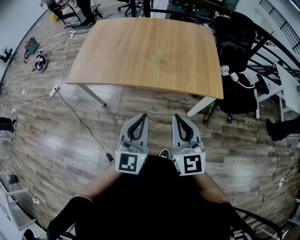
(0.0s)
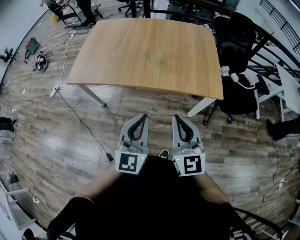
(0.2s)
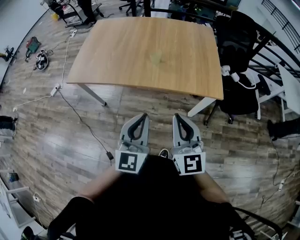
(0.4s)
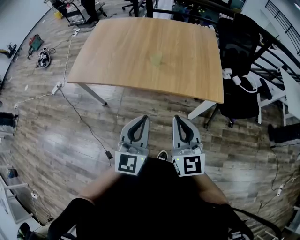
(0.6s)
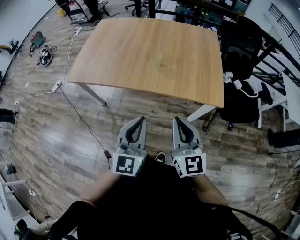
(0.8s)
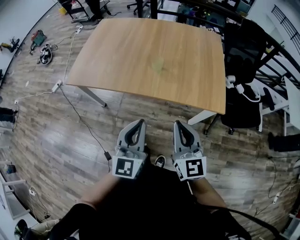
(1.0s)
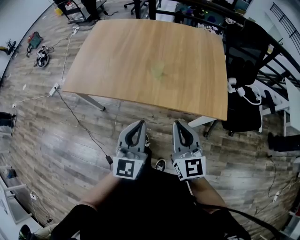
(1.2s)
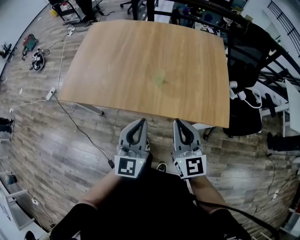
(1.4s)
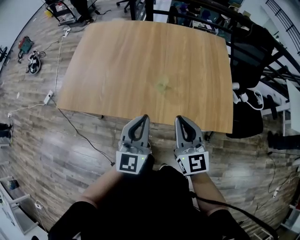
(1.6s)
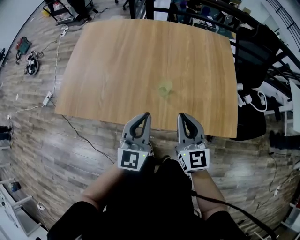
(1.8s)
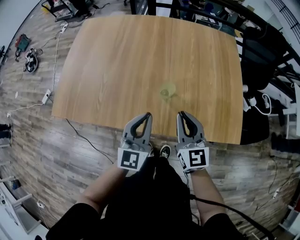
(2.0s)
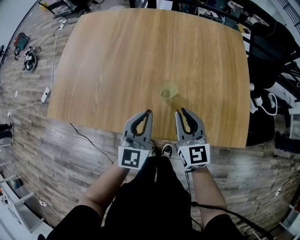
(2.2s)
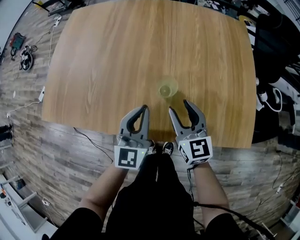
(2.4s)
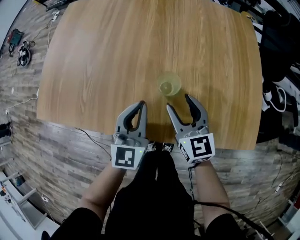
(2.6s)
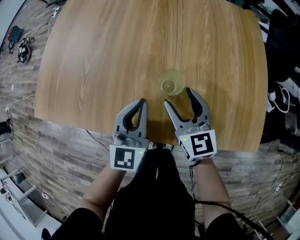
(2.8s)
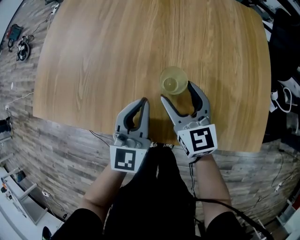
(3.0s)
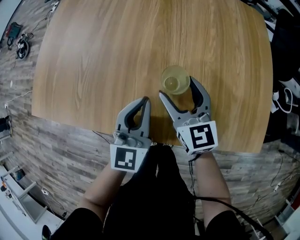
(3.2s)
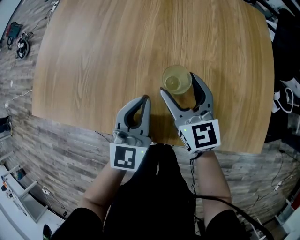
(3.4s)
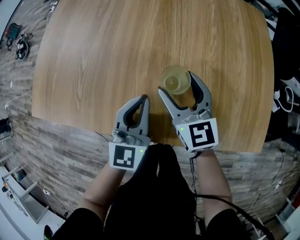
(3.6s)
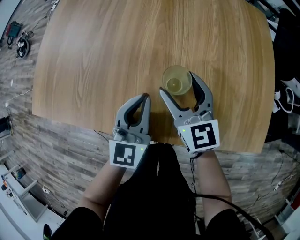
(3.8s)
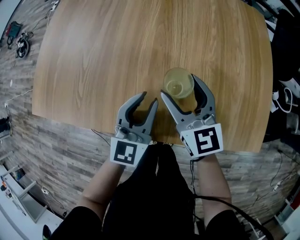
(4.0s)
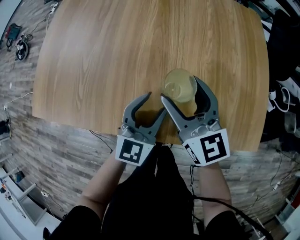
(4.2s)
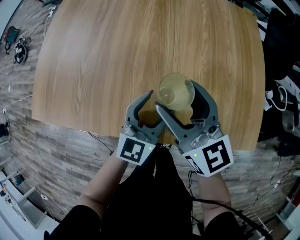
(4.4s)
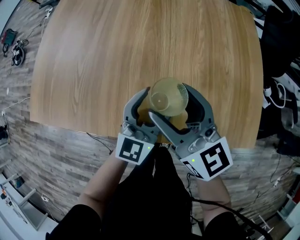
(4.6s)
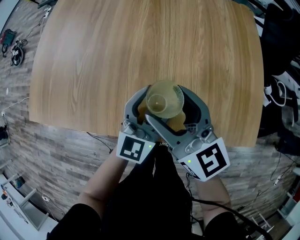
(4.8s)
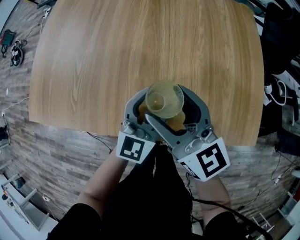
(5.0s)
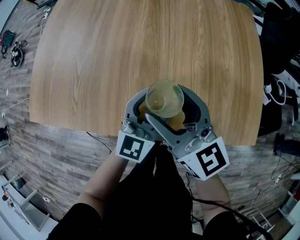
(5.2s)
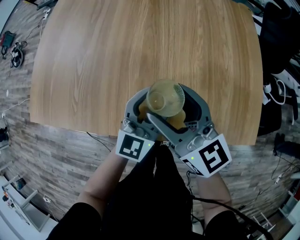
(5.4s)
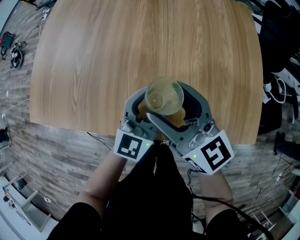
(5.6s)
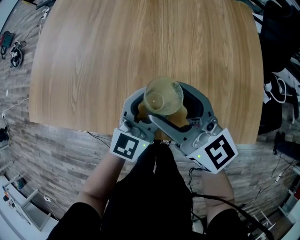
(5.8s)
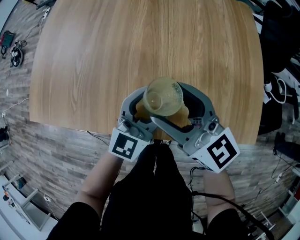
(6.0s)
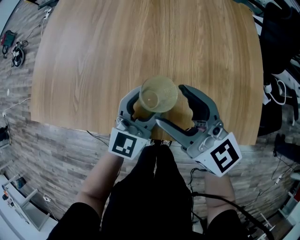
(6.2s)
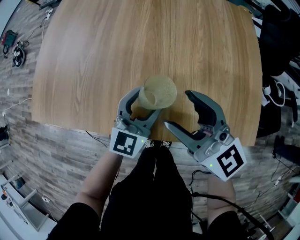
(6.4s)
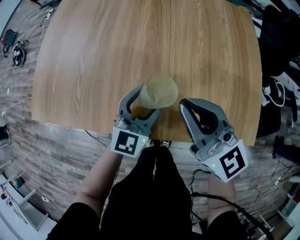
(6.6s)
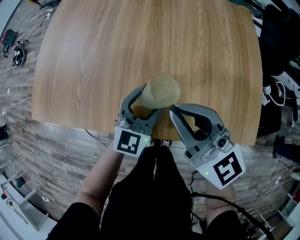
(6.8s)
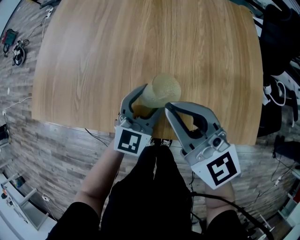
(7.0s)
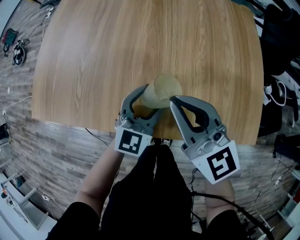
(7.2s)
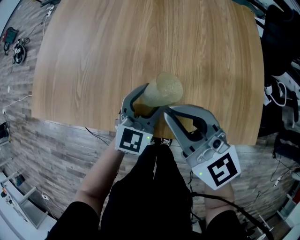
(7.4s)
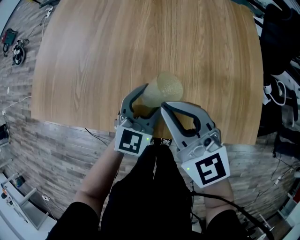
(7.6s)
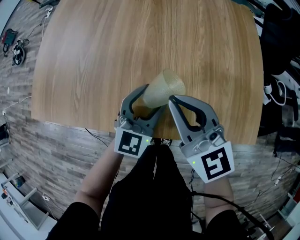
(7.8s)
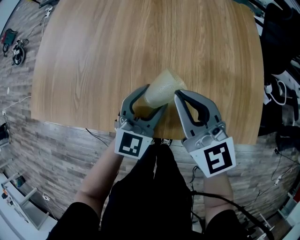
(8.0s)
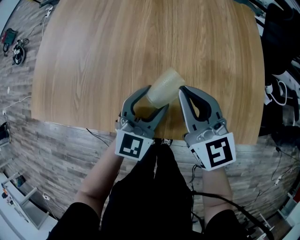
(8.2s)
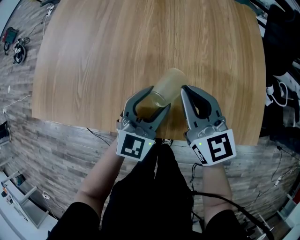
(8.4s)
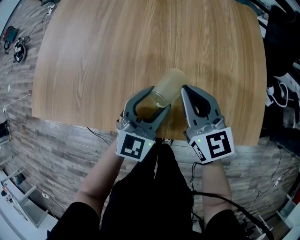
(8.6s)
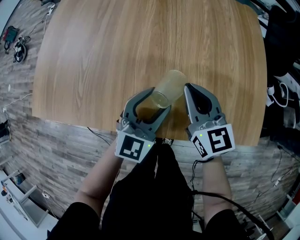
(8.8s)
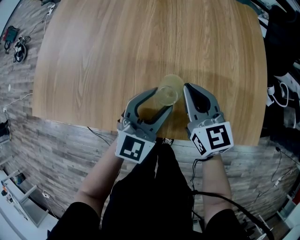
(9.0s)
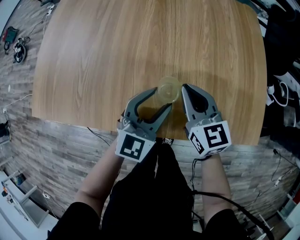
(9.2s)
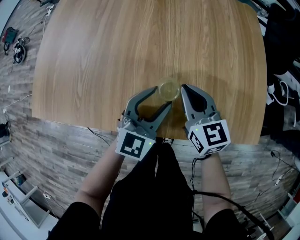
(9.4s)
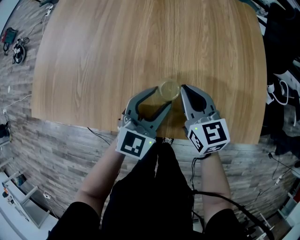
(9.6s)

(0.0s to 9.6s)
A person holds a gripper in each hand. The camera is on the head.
0.0s - 1.6s: The grippers both shift forward by approximately 25 cm.
1.6s - 3.2s: Both grippers move downward and forward, about 30 cm. The right gripper opens up.
3.2s - 4.8s: The left gripper shifts approximately 5 cm to the right, turns by roughly 20 degrees, and opens up. Meanwhile the right gripper is displaced upward by approximately 10 cm.
4.8s - 6.4s: The grippers stay close to where they were, moving slightly.
6.4s - 8.0s: The right gripper closes its fingers.
8.0s - 9.6s: The right gripper shifts some 10 cm downward.

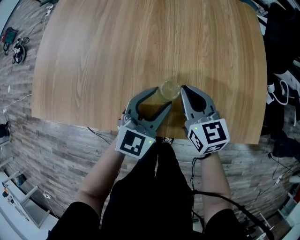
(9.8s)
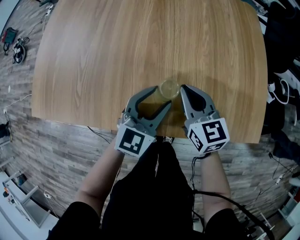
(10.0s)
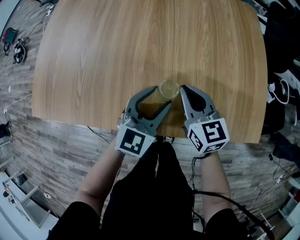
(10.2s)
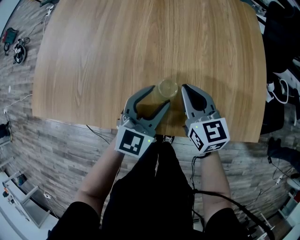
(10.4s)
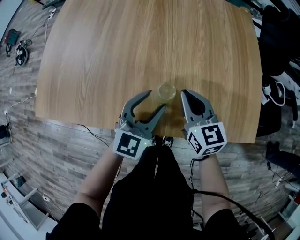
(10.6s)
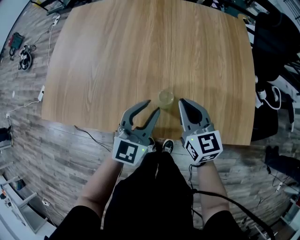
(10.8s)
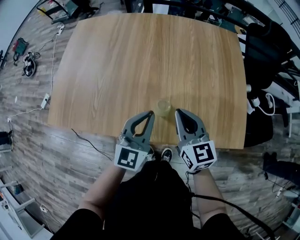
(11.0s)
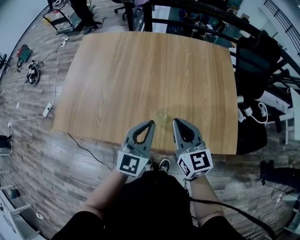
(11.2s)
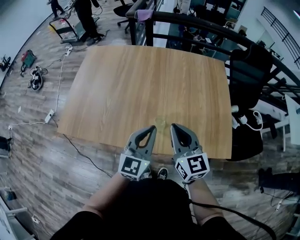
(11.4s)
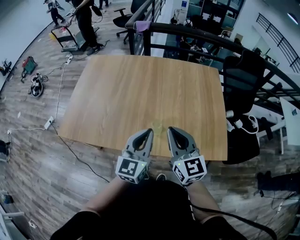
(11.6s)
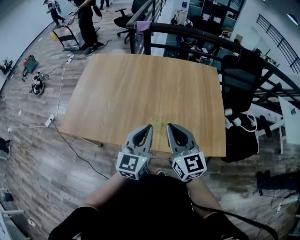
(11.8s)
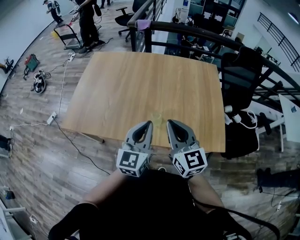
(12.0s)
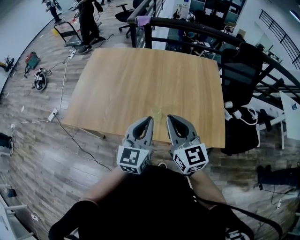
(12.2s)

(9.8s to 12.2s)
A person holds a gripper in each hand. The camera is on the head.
9.8s - 11.0s: The two grippers go some 10 cm upward. The left gripper closes up.
11.0s - 12.2s: The two grippers go approximately 20 cm upward and backward.

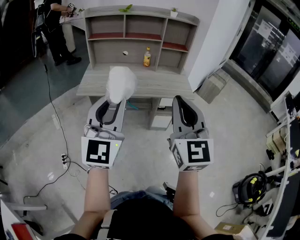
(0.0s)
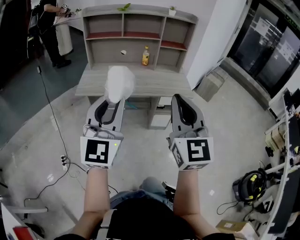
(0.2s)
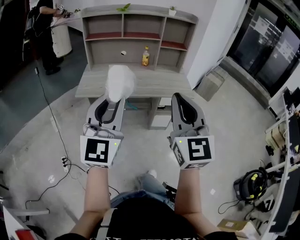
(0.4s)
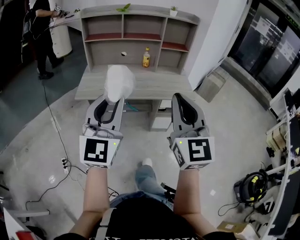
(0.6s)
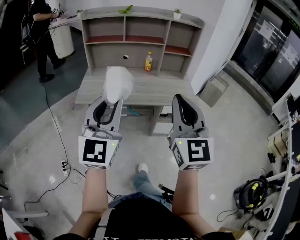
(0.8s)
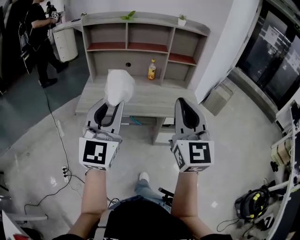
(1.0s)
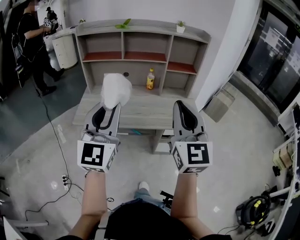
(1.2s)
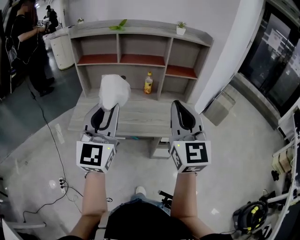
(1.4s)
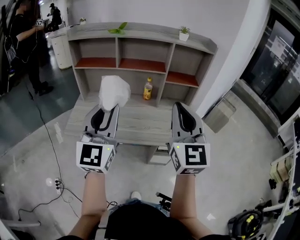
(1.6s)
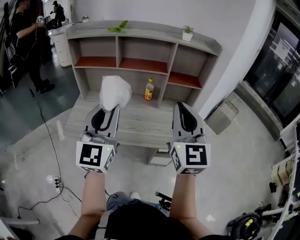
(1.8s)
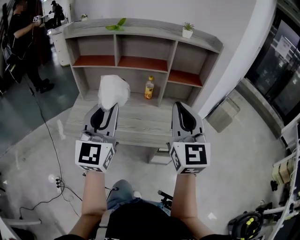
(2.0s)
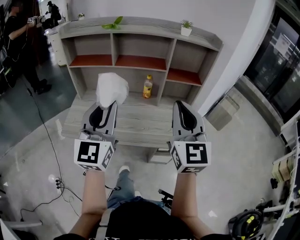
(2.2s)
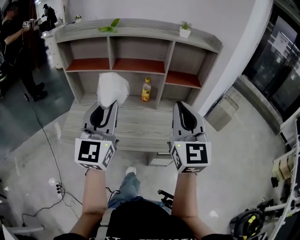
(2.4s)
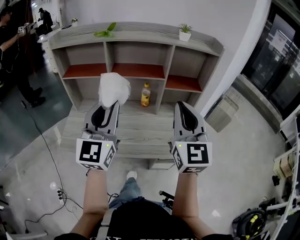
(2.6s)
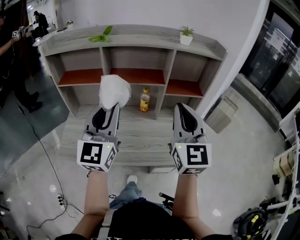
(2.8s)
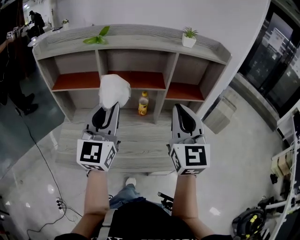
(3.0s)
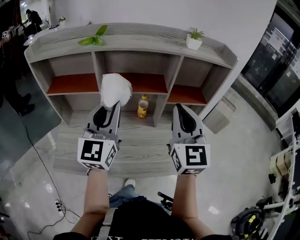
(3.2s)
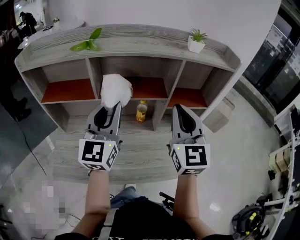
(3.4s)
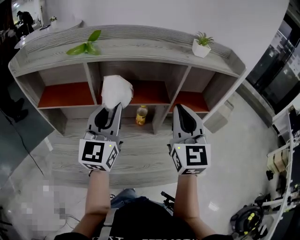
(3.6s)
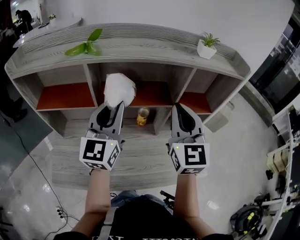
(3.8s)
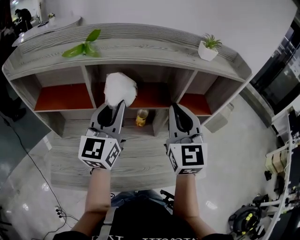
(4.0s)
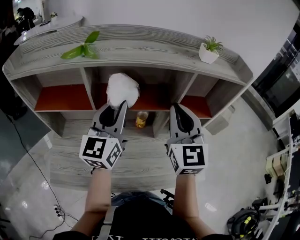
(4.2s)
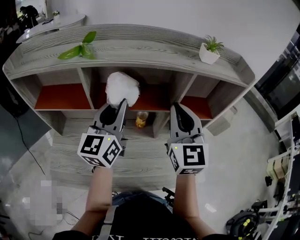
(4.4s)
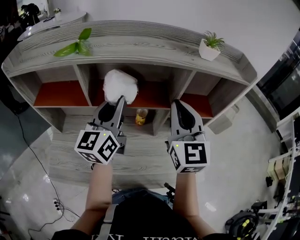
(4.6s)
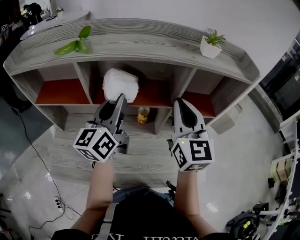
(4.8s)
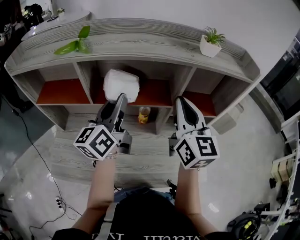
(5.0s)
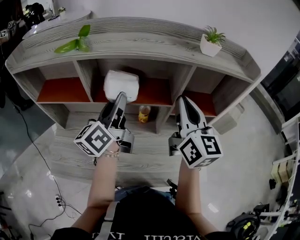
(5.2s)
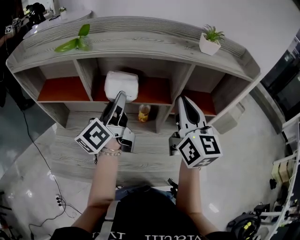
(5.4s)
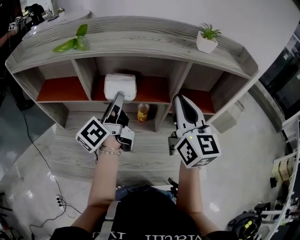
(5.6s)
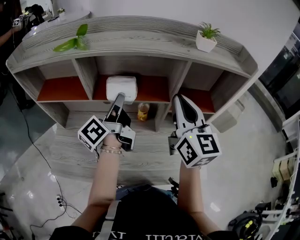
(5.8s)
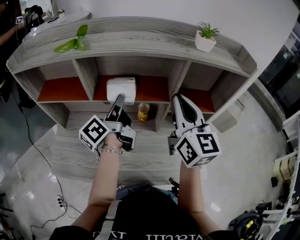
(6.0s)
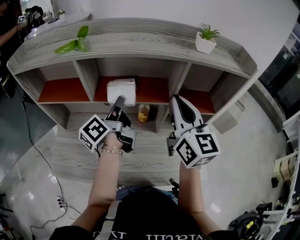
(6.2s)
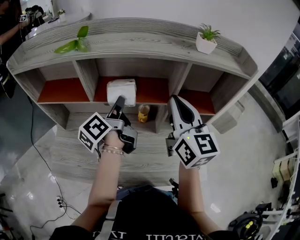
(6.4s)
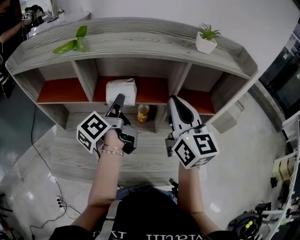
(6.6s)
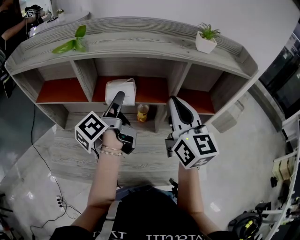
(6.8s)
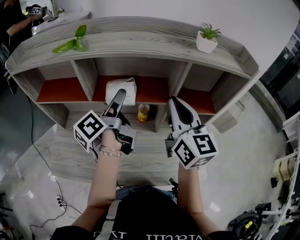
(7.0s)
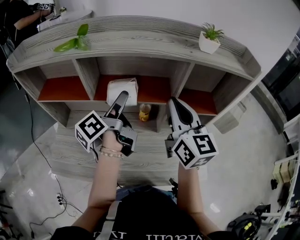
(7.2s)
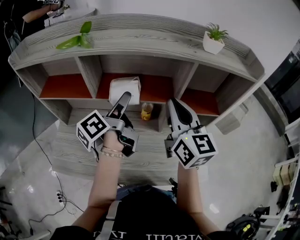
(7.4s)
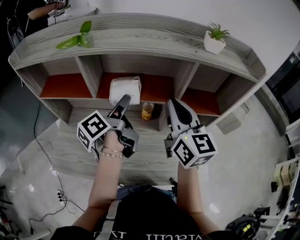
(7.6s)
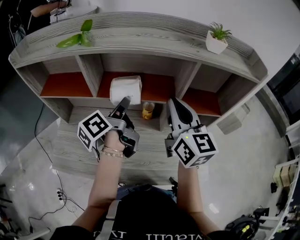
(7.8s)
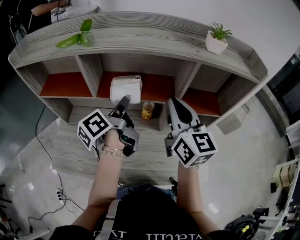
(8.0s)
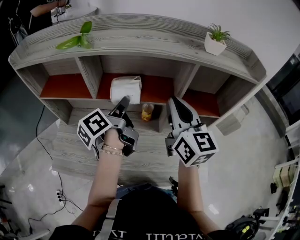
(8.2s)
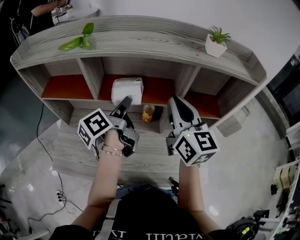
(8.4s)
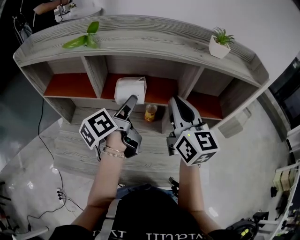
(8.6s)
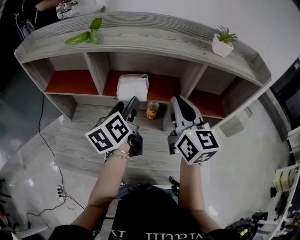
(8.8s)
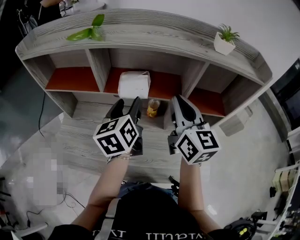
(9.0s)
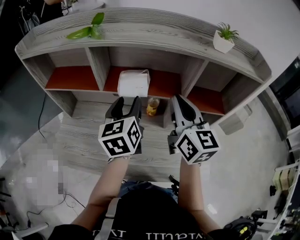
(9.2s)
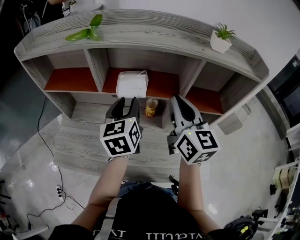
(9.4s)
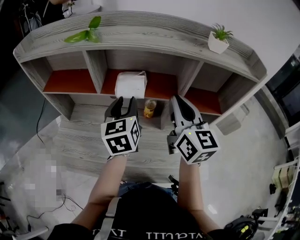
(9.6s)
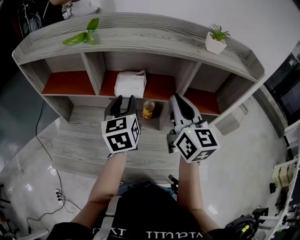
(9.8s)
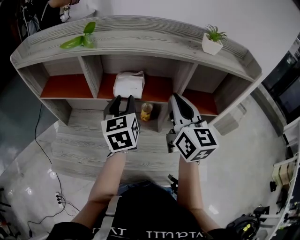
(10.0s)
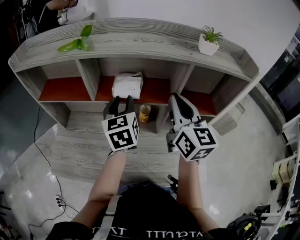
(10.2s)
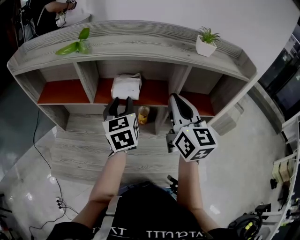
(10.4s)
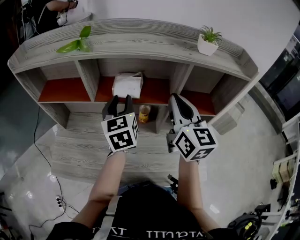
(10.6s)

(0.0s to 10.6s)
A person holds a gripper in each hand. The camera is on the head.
0.0s - 1.6s: Both grippers move forward, roughly 35 cm.
1.6s - 3.0s: Both grippers travel together forward, about 20 cm.
3.0s - 4.6s: Both grippers travel together forward, some 20 cm. The left gripper changes its angle by roughly 30 degrees.
4.6s - 6.0s: The left gripper moves downward, approximately 5 cm, and twists some 50 degrees counterclockwise, seen from behind. The right gripper turns by some 20 degrees.
6.0s - 7.6s: The left gripper opens up.
7.6s - 9.0s: The left gripper rolls clockwise, seen from behind, by some 50 degrees, and closes, then opens again.
9.0s - 10.6s: The grippers make only small movements.

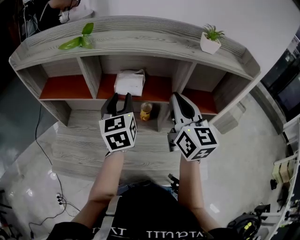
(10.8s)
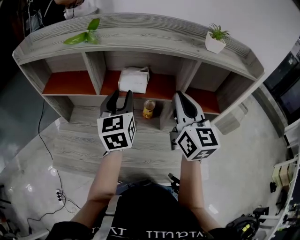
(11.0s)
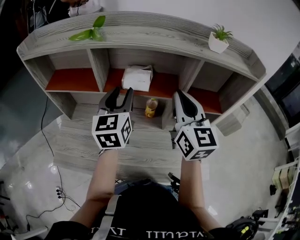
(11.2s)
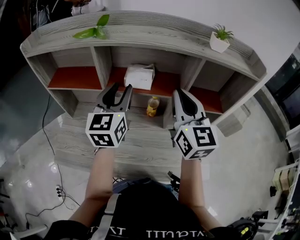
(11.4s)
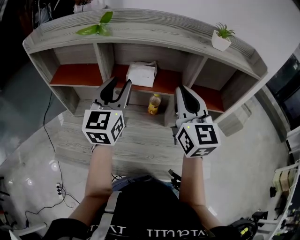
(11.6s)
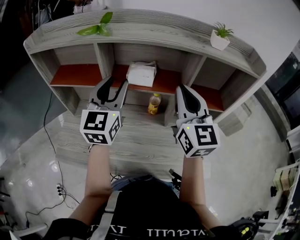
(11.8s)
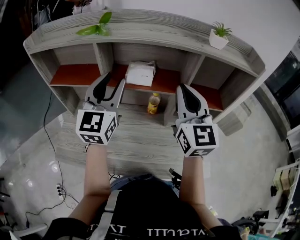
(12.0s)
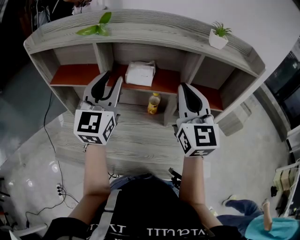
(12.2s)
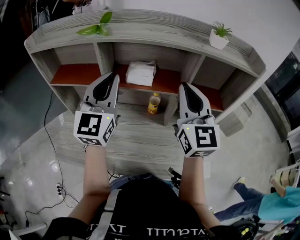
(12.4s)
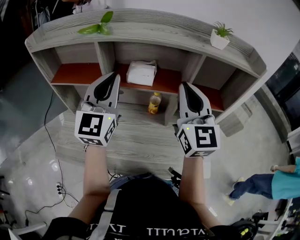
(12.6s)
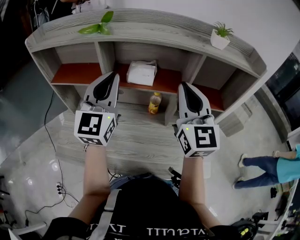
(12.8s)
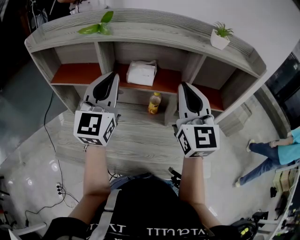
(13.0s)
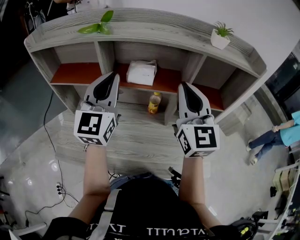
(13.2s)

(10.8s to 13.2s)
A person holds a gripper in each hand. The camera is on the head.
10.8s - 12.0s: The left gripper is displaced upward and backward by some 10 cm, and rotates roughly 30 degrees.
12.0s - 13.2s: The left gripper closes.
